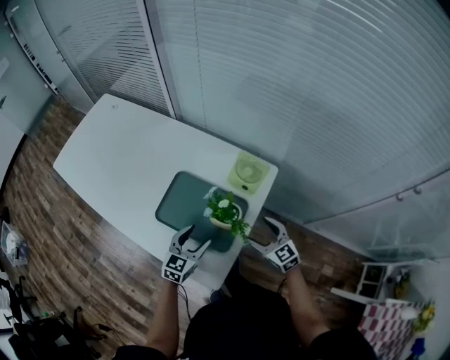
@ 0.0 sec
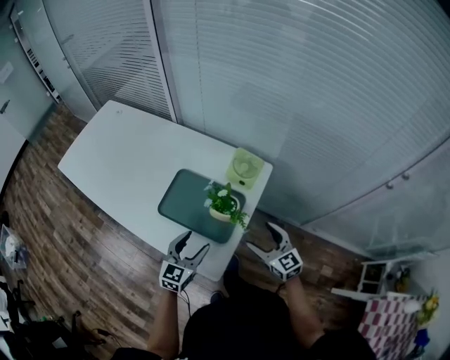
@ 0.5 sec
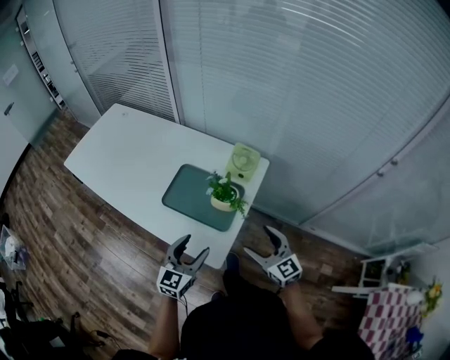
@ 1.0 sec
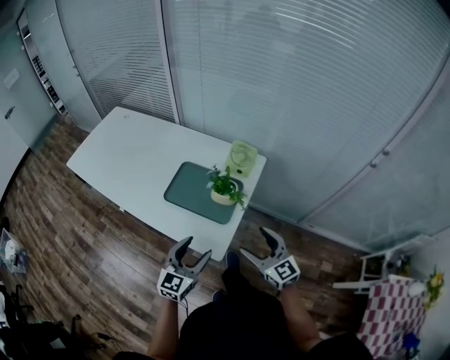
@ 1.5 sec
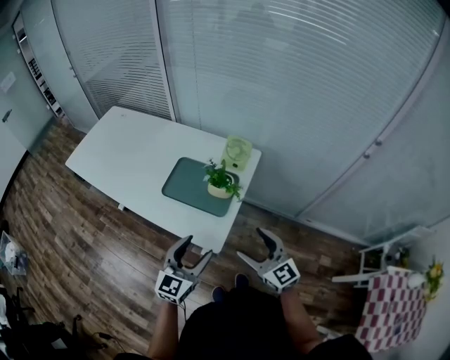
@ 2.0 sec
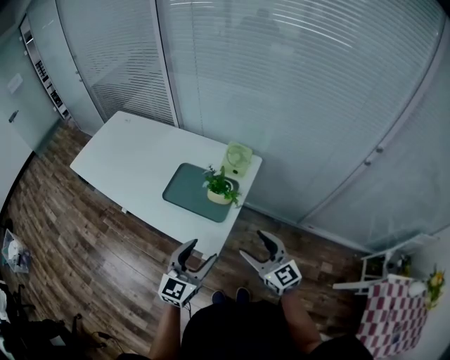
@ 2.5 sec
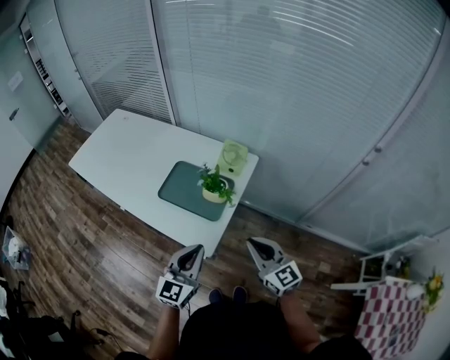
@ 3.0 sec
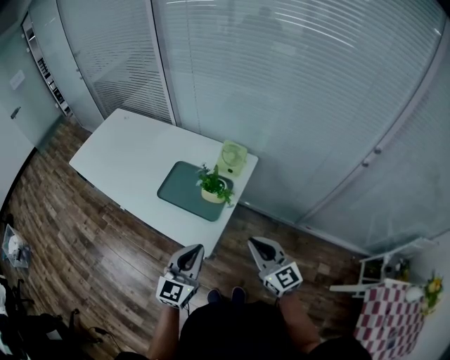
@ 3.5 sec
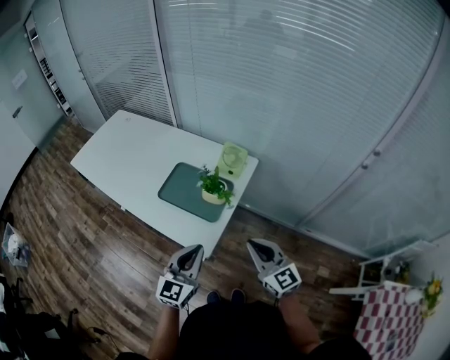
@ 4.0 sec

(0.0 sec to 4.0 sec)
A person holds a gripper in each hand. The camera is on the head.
0.0 sec - 2.0 sec: The two grippers go some 25 cm backward and upward.
2.0 sec - 4.0 sec: The right gripper heads to the right, covering about 5 cm, and closes its fingers. Meanwhile the left gripper changes place by approximately 5 cm, and closes.

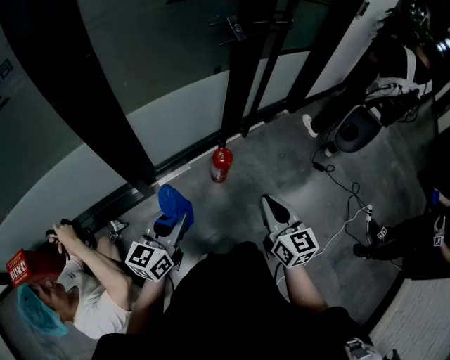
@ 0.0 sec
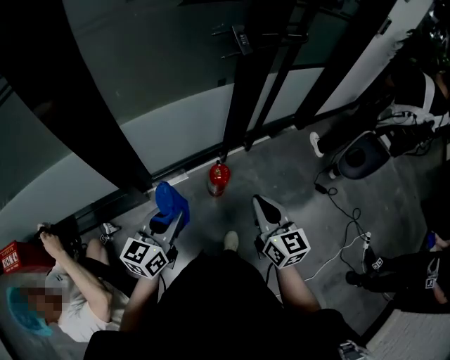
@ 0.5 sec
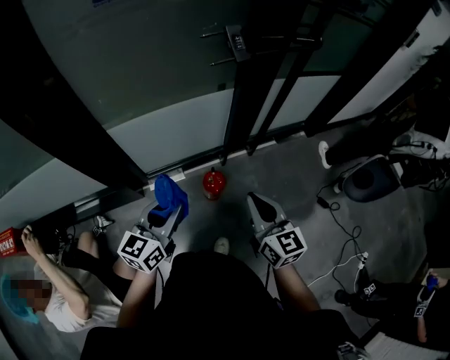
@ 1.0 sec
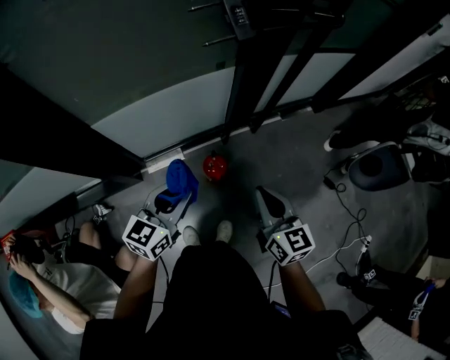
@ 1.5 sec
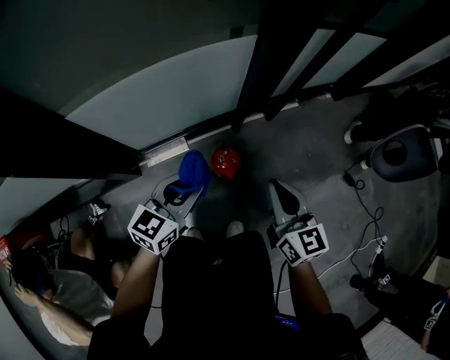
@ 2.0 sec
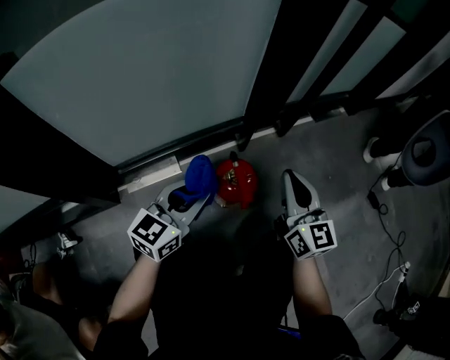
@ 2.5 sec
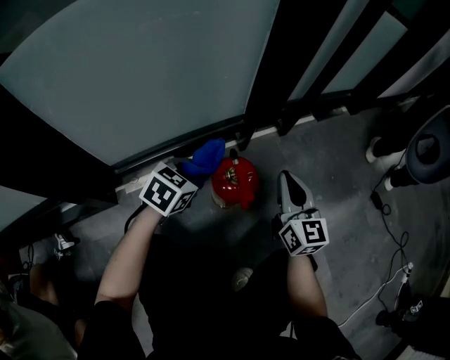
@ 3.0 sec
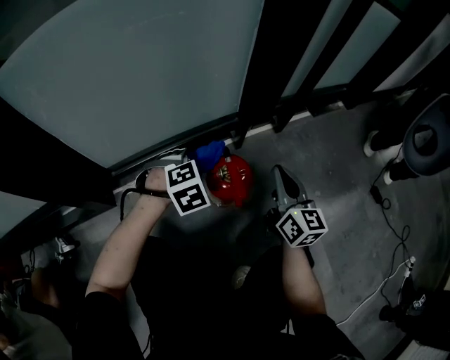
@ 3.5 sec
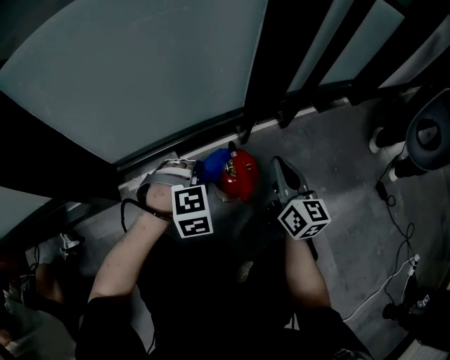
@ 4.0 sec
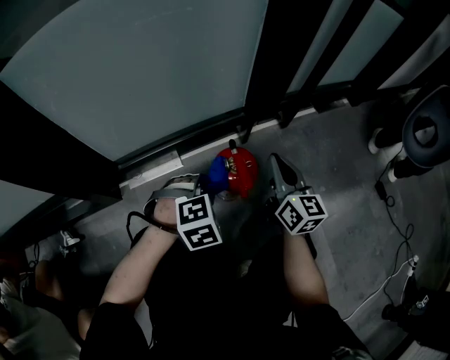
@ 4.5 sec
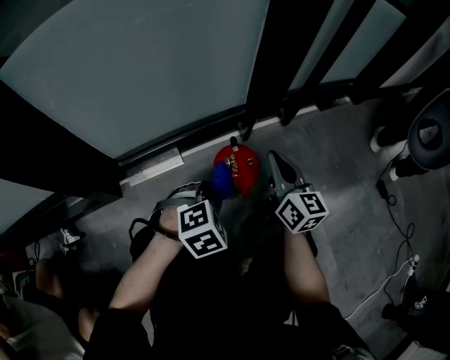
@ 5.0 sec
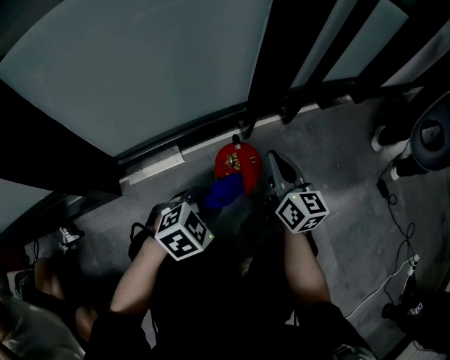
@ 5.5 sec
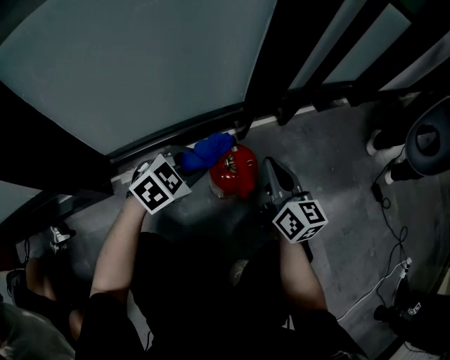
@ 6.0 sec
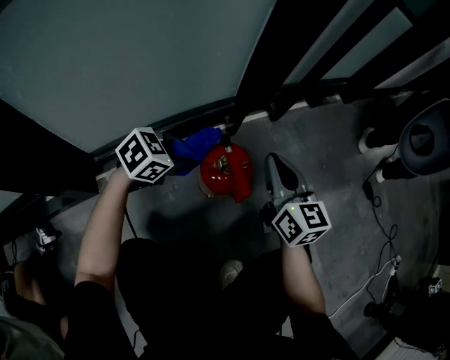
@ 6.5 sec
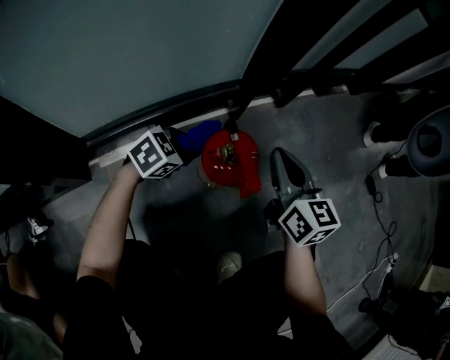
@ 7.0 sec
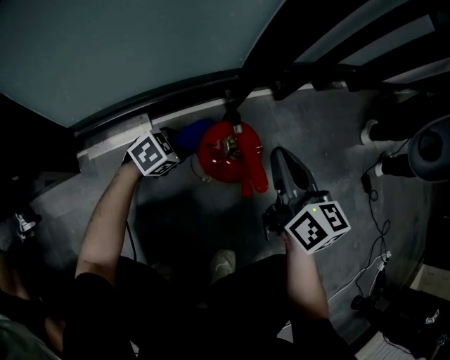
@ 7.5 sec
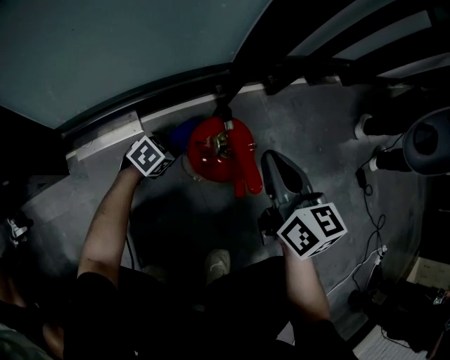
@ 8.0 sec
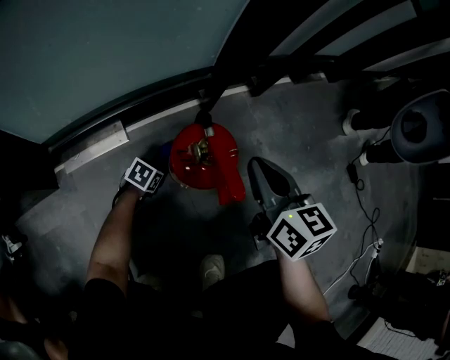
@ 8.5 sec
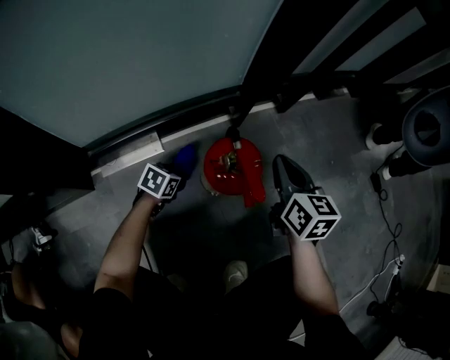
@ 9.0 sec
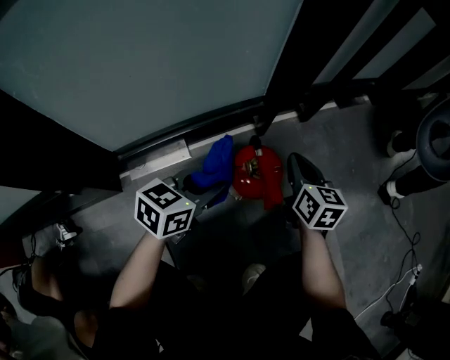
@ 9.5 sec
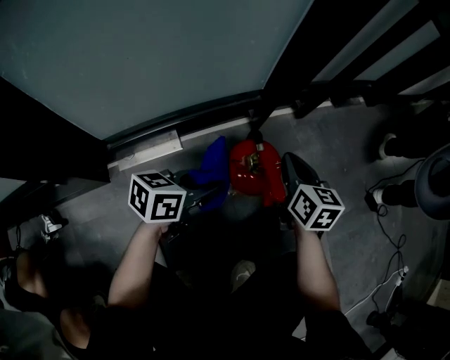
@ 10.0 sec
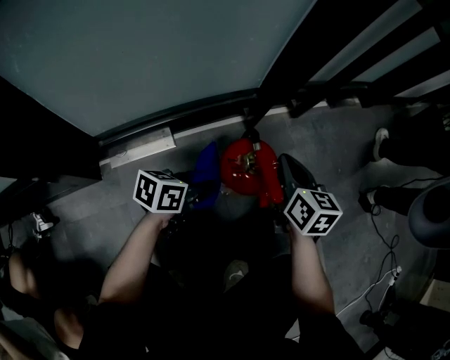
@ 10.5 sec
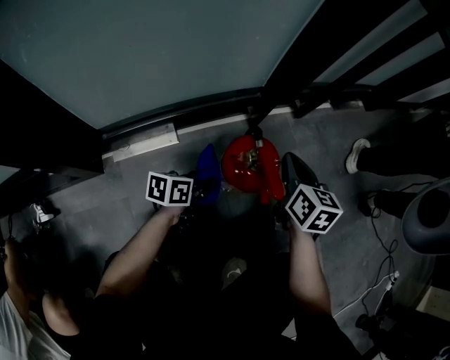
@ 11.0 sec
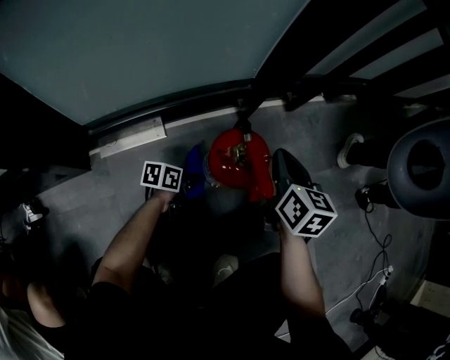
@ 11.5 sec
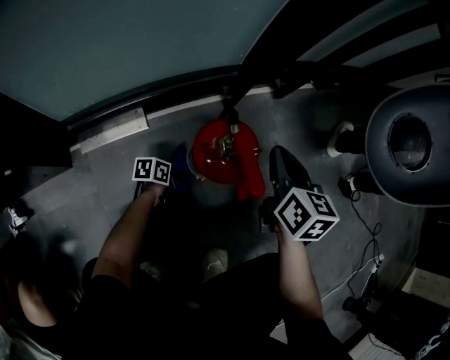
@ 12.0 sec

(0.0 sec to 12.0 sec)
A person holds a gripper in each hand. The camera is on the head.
0.0 sec - 2.0 sec: The left gripper is displaced forward, downward and to the right by roughly 40 cm. The right gripper goes roughly 40 cm forward and downward.
2.0 sec - 4.0 sec: The two grippers go about 35 cm downward. The left gripper rotates around the line of its fingers by some 70 degrees, clockwise from behind.
4.0 sec - 6.0 sec: The left gripper reaches approximately 10 cm backward, then returns, and rotates about 50 degrees.
6.0 sec - 8.0 sec: The left gripper goes about 30 cm downward, and turns by roughly 20 degrees.
8.0 sec - 10.0 sec: The right gripper shifts by some 5 cm; the left gripper moves upward, about 20 cm, and tips its fingers upward by about 30 degrees.
10.0 sec - 12.0 sec: The left gripper travels downward by roughly 30 cm, and rotates some 40 degrees.

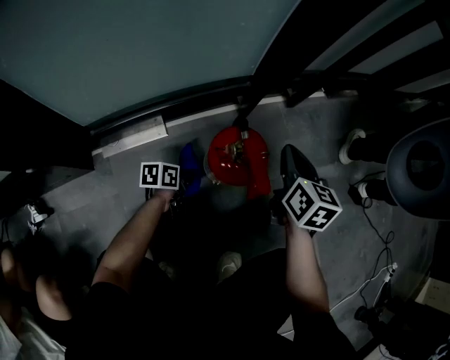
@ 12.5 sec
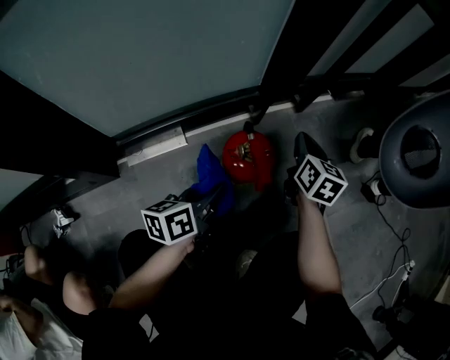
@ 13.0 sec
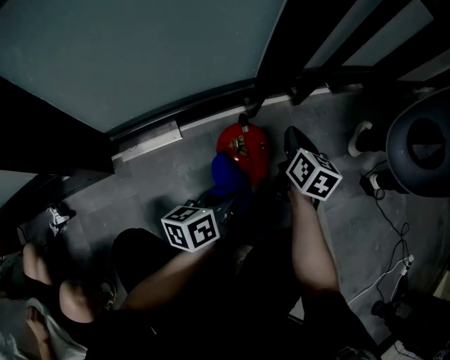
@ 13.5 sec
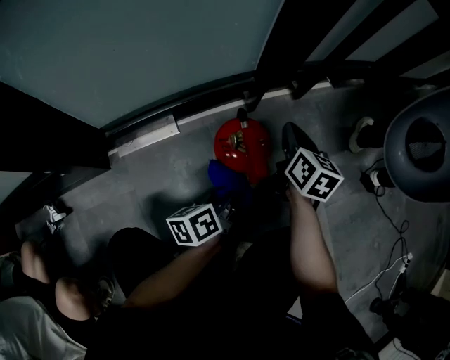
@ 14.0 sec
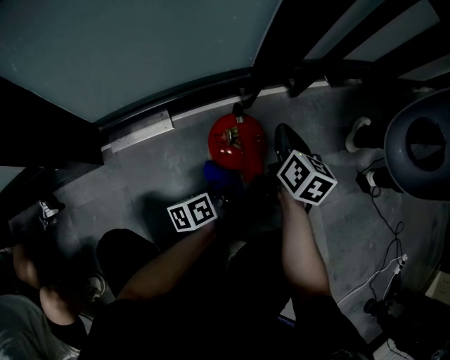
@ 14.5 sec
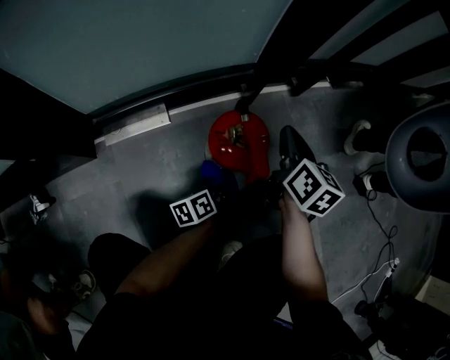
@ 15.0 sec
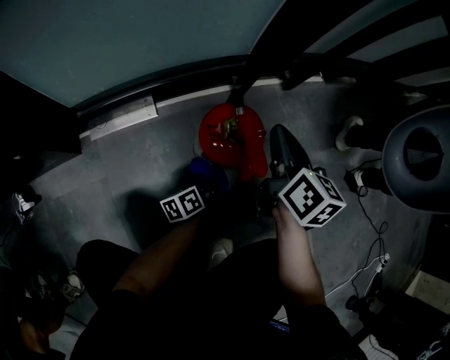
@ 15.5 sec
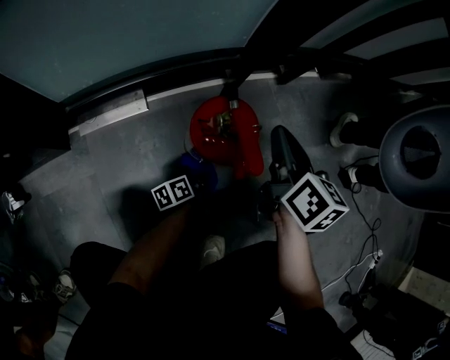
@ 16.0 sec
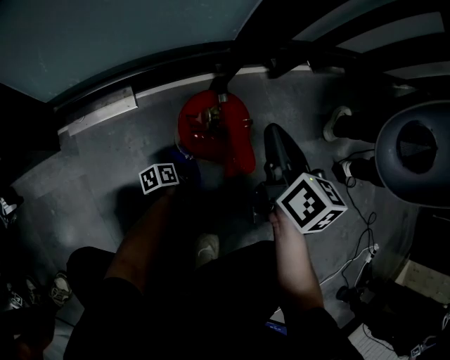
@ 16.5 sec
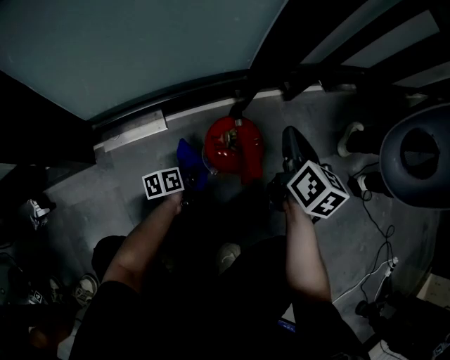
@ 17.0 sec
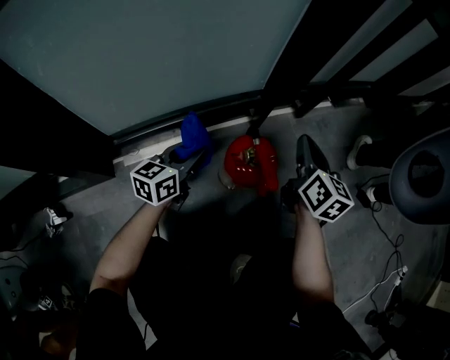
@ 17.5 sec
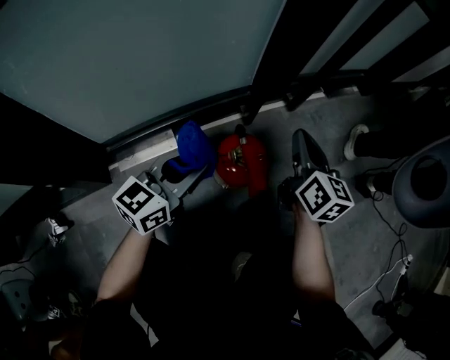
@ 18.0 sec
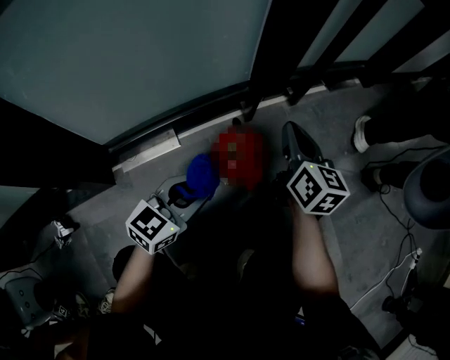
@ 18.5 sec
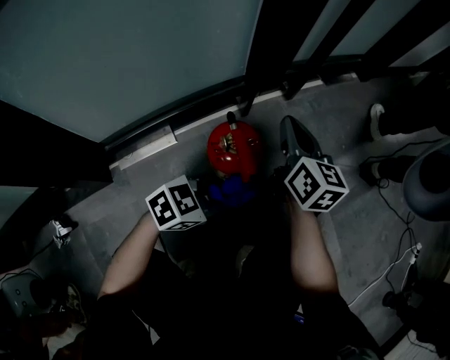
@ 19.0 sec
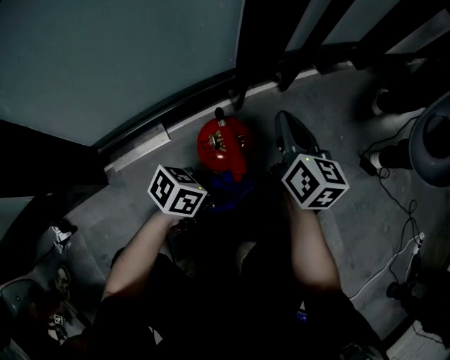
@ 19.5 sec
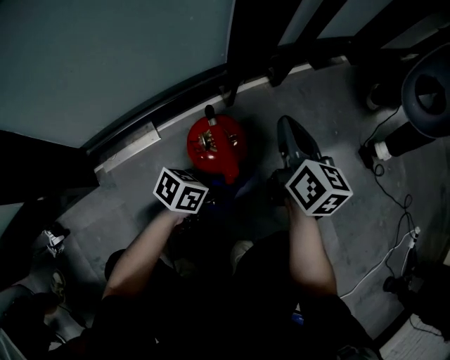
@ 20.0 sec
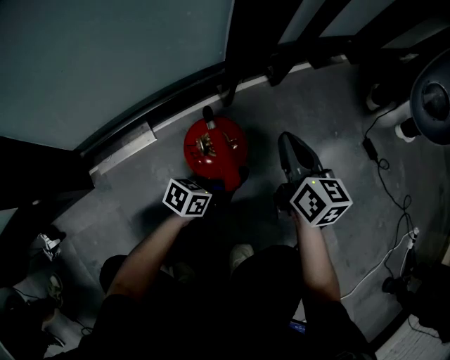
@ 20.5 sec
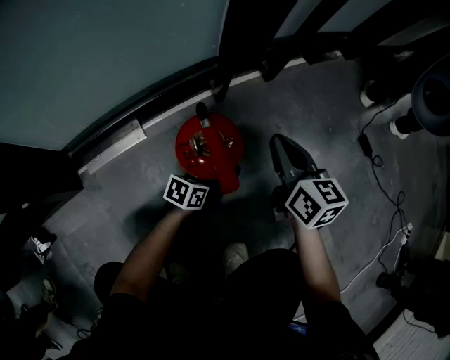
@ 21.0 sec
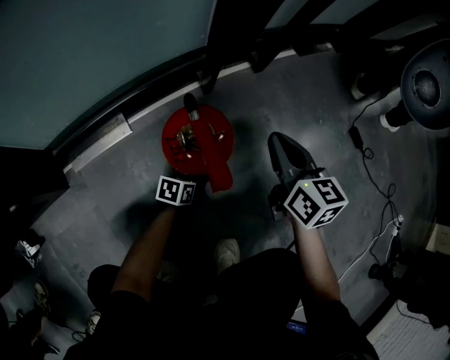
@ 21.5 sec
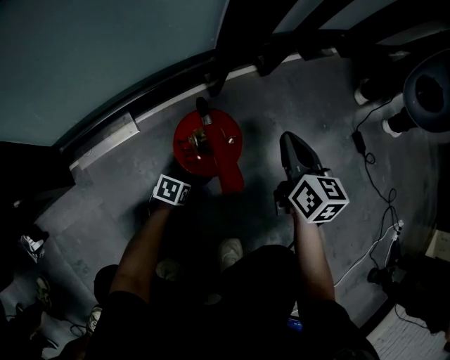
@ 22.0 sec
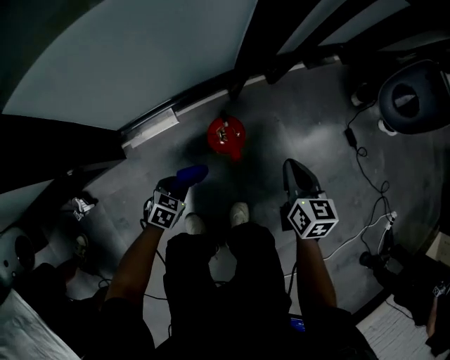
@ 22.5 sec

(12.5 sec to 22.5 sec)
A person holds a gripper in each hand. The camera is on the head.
12.5 sec - 14.5 sec: The left gripper is displaced upward and to the right by about 15 cm, and swivels approximately 30 degrees.
14.5 sec - 16.5 sec: The left gripper travels downward by roughly 20 cm, and turns by approximately 20 degrees.
16.5 sec - 18.5 sec: The right gripper heads upward, covering about 5 cm. Meanwhile the left gripper moves upward, roughly 35 cm, and twists about 80 degrees clockwise, seen from behind.
18.5 sec - 20.5 sec: The left gripper moves downward and to the right, about 25 cm, and turns by some 40 degrees, while the right gripper shifts about 10 cm downward and to the right.
20.5 sec - 22.5 sec: The left gripper shifts roughly 30 cm upward, to the left and backward, and swivels some 40 degrees. Meanwhile the right gripper moves upward and backward, roughly 20 cm.
